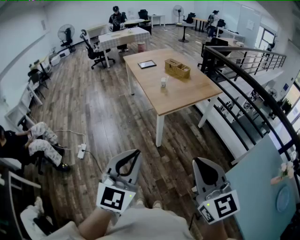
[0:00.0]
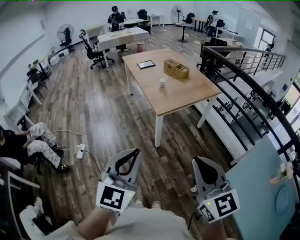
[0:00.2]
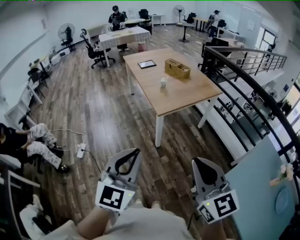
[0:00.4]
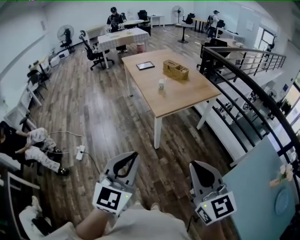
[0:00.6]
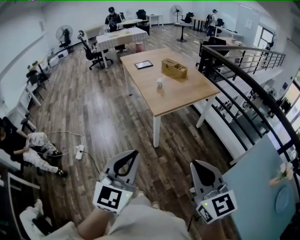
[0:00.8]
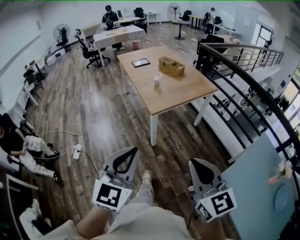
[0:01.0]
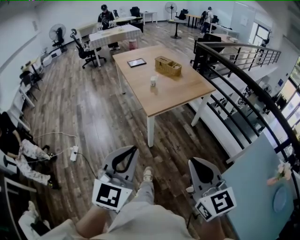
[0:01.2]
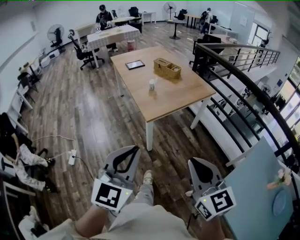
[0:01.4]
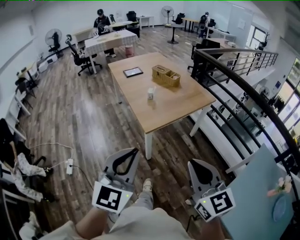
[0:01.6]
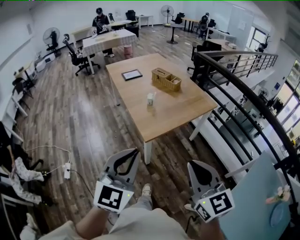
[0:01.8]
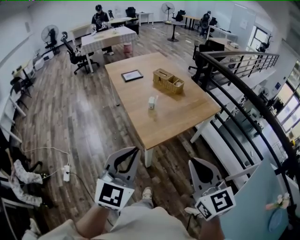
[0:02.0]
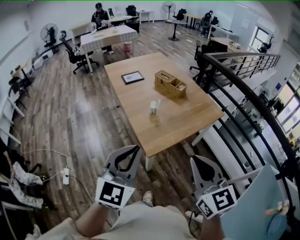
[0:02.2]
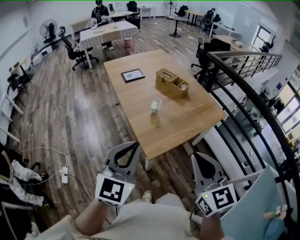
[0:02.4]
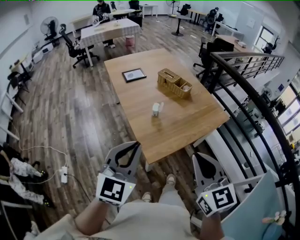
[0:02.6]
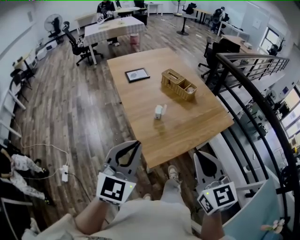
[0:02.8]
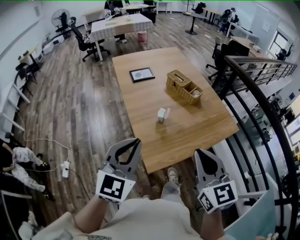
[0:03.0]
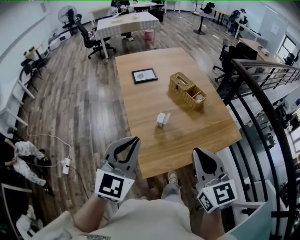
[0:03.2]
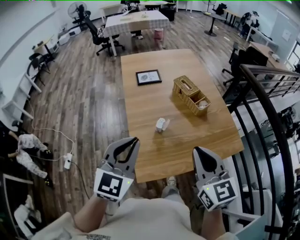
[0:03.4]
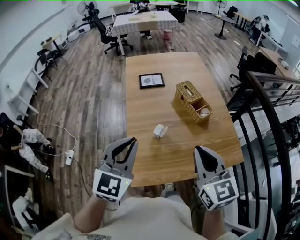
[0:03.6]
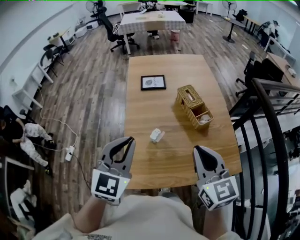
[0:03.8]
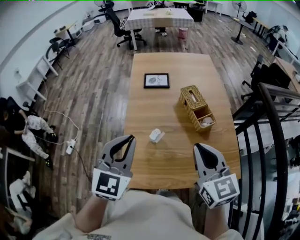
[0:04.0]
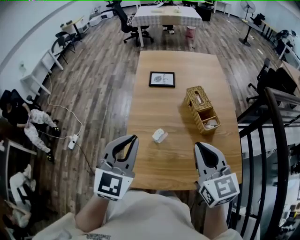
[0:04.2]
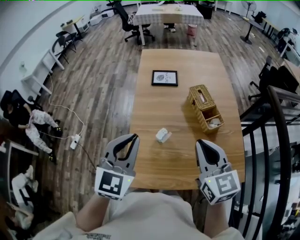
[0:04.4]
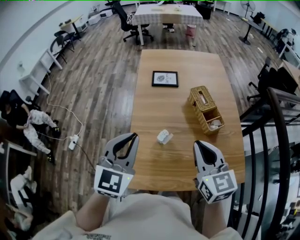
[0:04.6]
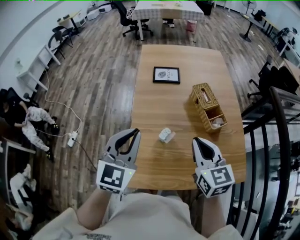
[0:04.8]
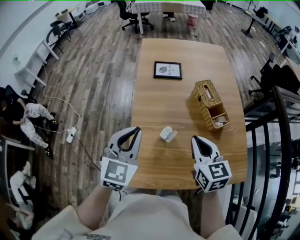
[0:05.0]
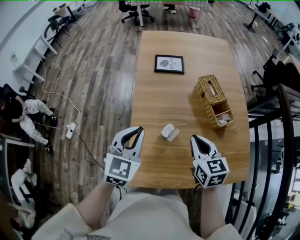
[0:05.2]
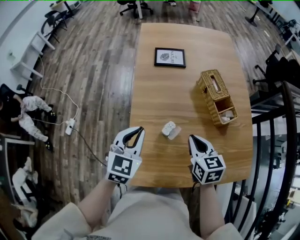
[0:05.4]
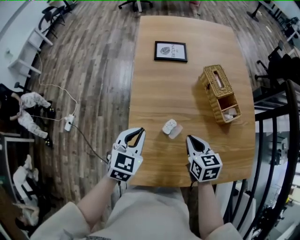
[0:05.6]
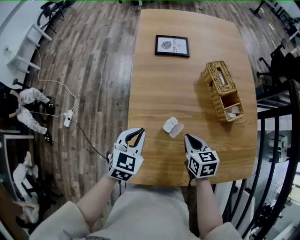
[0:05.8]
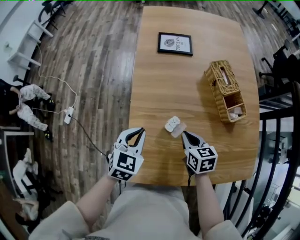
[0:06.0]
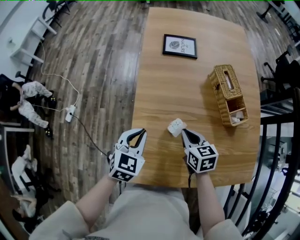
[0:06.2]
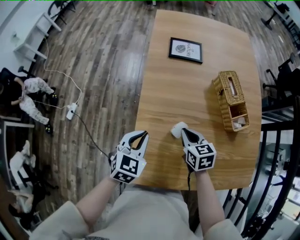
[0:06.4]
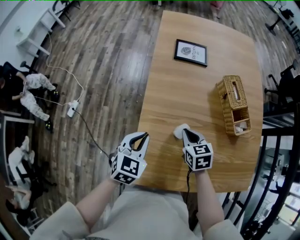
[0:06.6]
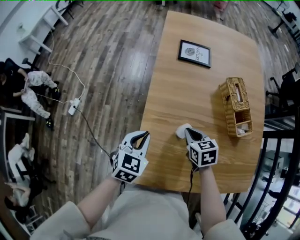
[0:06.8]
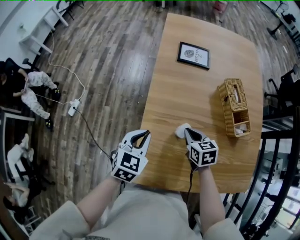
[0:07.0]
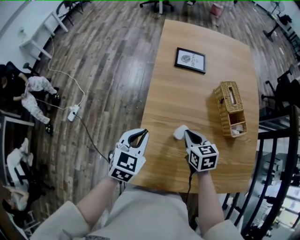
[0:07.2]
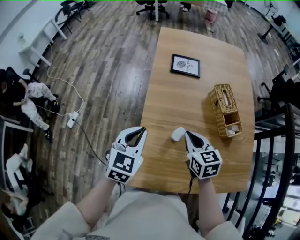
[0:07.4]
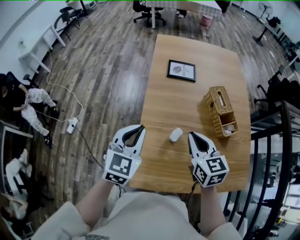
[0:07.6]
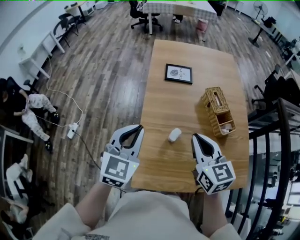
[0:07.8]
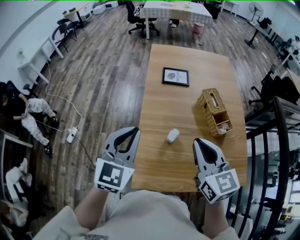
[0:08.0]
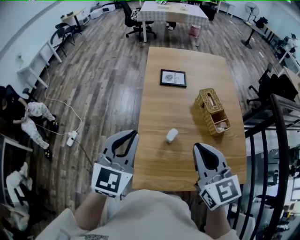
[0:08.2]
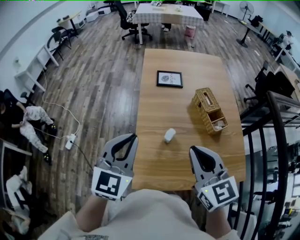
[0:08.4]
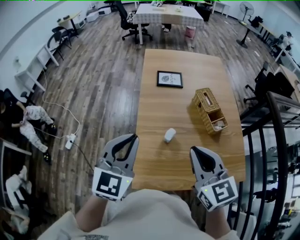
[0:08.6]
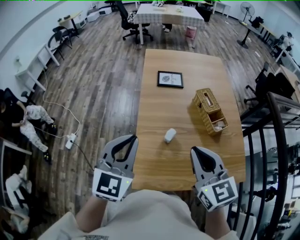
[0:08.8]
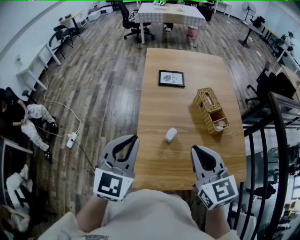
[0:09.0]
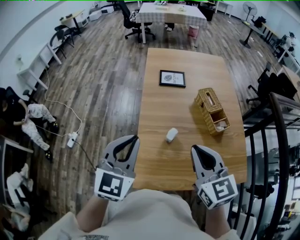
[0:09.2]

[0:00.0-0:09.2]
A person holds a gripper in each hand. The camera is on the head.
0:00.0 to 0:01.6: Both grippers move forward, some 20 cm.
0:01.6 to 0:03.0: Both grippers are carried forward, about 50 cm.
0:03.0 to 0:04.6: The right gripper changes place by approximately 30 cm, and rotates some 20 degrees; the left gripper moves about 25 cm, and swivels approximately 30 degrees.
0:04.6 to 0:06.2: The right gripper heads downward and forward, covering approximately 30 cm, and changes its angle by some 30 degrees. The left gripper moves downward, some 25 cm, and turns by some 30 degrees.
0:06.2 to 0:07.6: The grippers both shift upward by some 15 cm.
0:07.6 to 0:09.2: The grippers both shift upward and backward by about 15 cm.

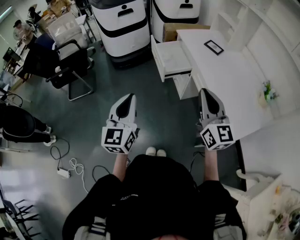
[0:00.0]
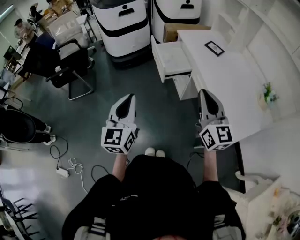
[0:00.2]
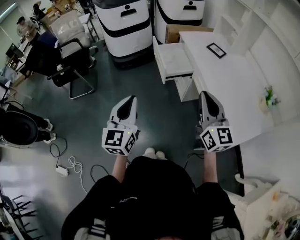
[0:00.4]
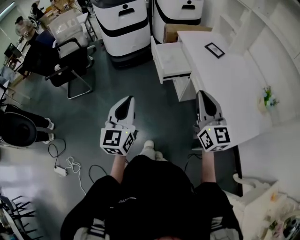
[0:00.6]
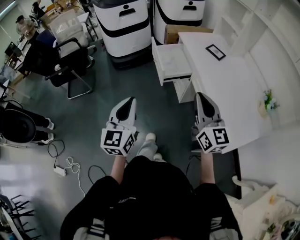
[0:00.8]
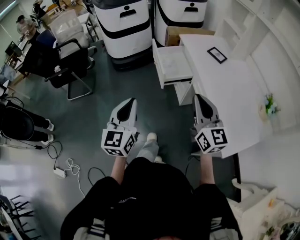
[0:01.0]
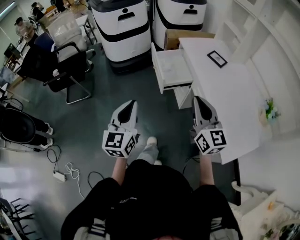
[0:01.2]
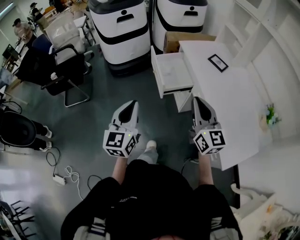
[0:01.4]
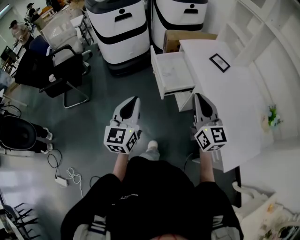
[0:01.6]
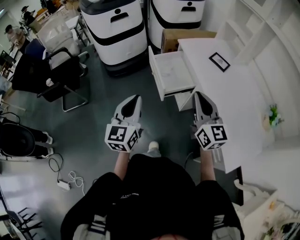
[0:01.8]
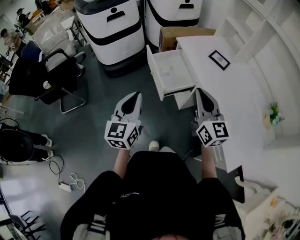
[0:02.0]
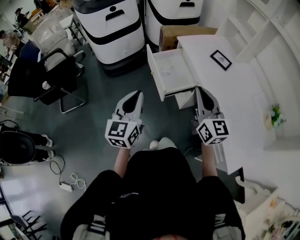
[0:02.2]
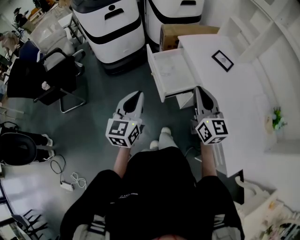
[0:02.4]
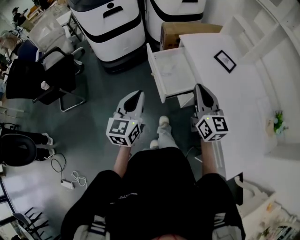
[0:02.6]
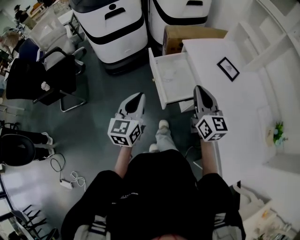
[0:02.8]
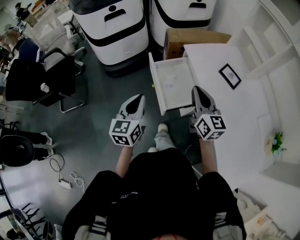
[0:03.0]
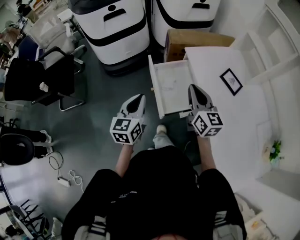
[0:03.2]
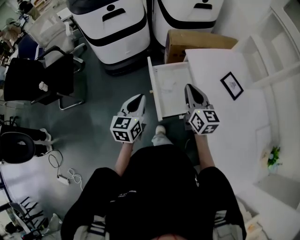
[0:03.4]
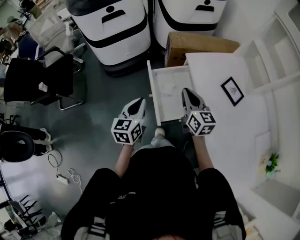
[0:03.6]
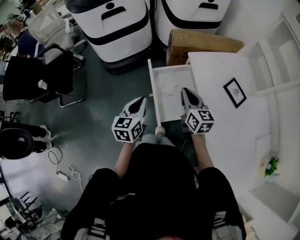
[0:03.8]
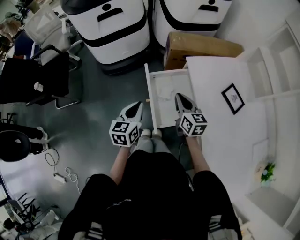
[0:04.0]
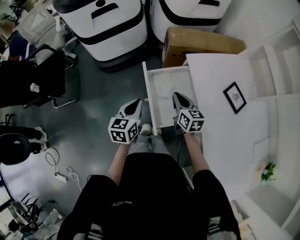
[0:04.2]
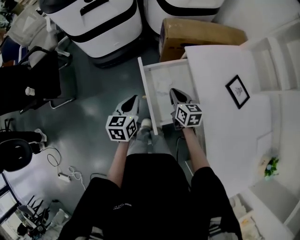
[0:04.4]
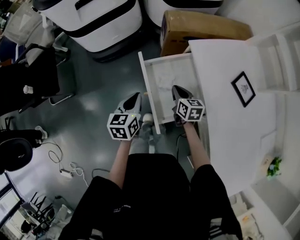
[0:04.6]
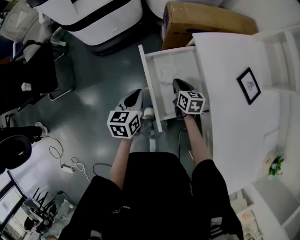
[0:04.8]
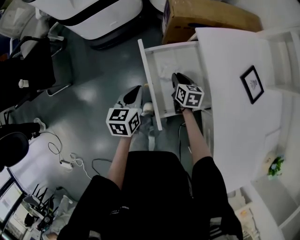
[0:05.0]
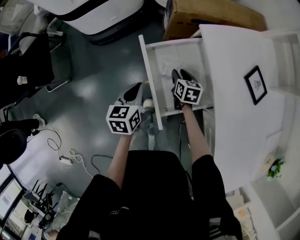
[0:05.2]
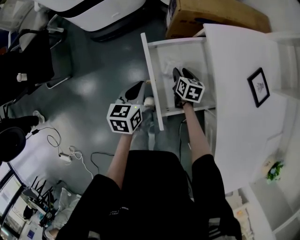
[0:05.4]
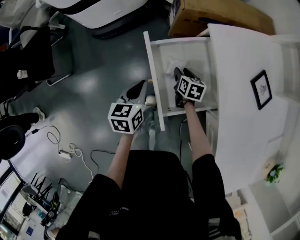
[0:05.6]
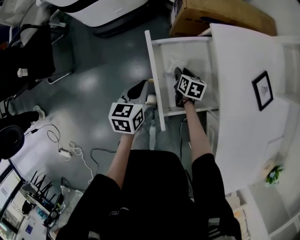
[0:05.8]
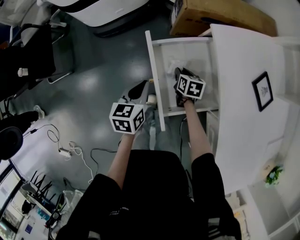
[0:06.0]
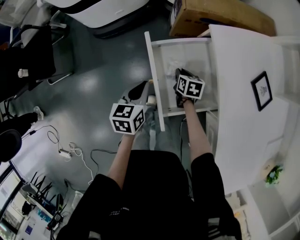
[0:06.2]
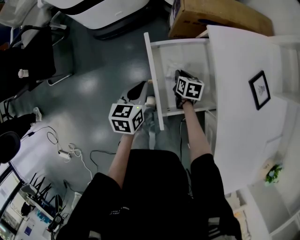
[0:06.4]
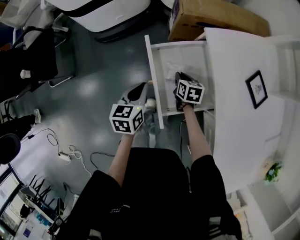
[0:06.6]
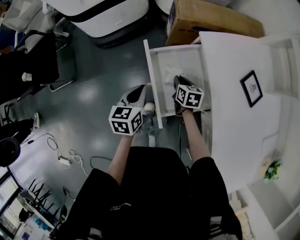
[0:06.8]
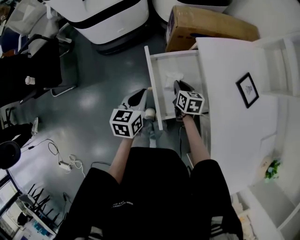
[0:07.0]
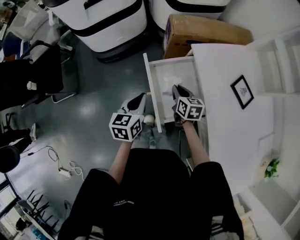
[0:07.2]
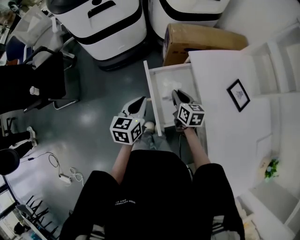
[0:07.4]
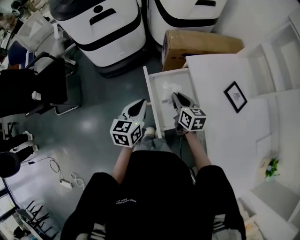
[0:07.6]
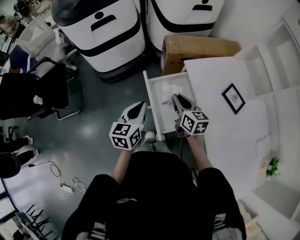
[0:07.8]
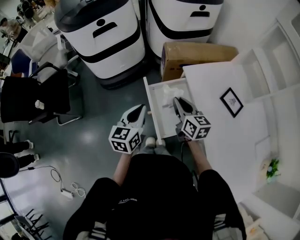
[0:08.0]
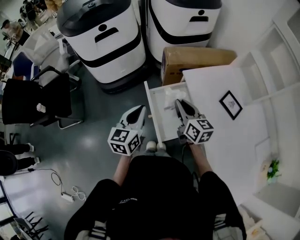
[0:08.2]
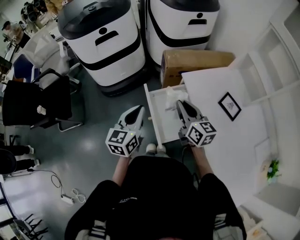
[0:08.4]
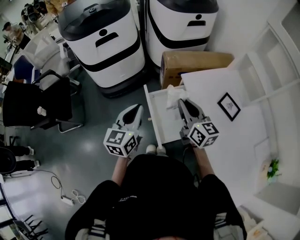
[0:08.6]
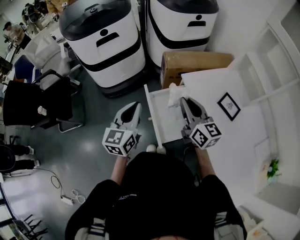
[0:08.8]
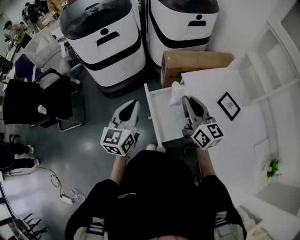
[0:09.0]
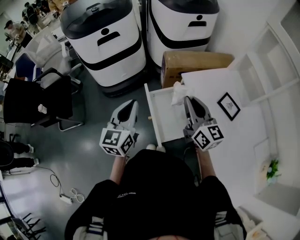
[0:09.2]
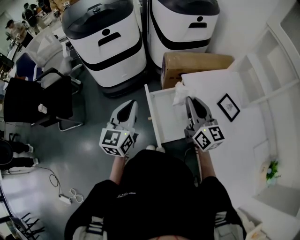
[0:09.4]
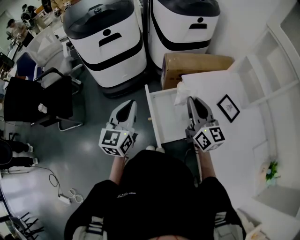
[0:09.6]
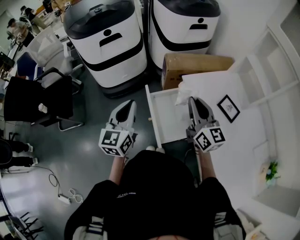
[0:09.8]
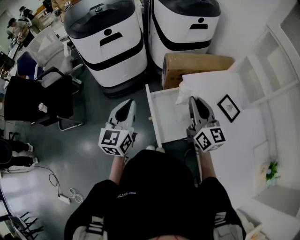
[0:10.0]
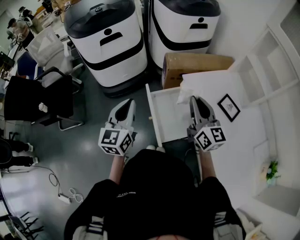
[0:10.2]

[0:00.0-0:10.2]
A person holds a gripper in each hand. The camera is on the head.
0:00.0 to 0:01.4: Both grippers move forward, approximately 15 cm.
0:01.4 to 0:03.0: The grippers both shift forward by approximately 30 cm.
0:03.0 to 0:04.4: The left gripper heads forward and downward, covering some 20 cm, and rotates about 20 degrees; the right gripper travels downward and forward by about 30 cm, and changes its angle by some 30 degrees.
0:04.4 to 0:05.8: The left gripper shifts approximately 10 cm downward. Meanwhile the right gripper is displaced downward by approximately 15 cm, swivels approximately 20 degrees, and opens its fingers.
0:05.8 to 0:07.2: The right gripper travels upward by about 15 cm, and closes up. The left gripper is displaced upward by roughly 10 cm.
0:07.2 to 0:08.8: The left gripper shifts about 20 cm upward, and rotates roughly 20 degrees. Meanwhile the right gripper travels upward by roughly 25 cm, and tips its fingers upward by some 40 degrees.
0:08.8 to 0:10.2: The grippers stay close to where they were, moving slightly.

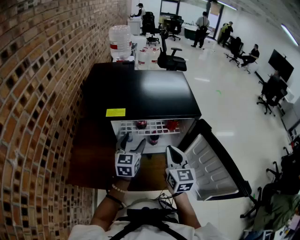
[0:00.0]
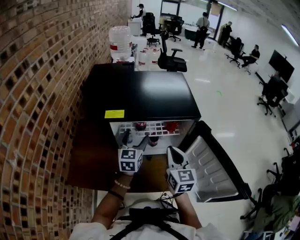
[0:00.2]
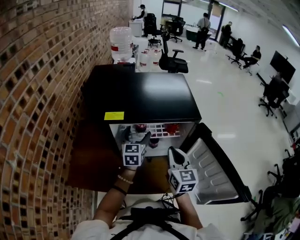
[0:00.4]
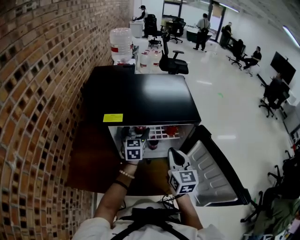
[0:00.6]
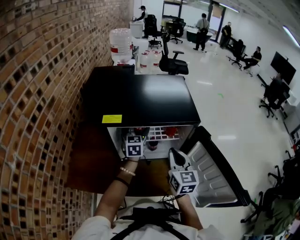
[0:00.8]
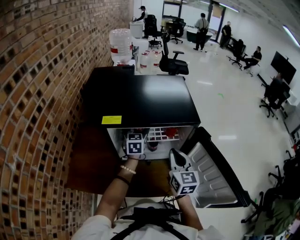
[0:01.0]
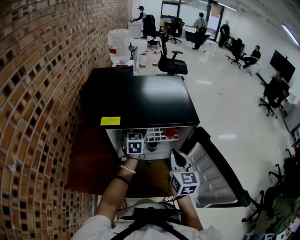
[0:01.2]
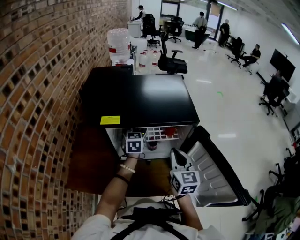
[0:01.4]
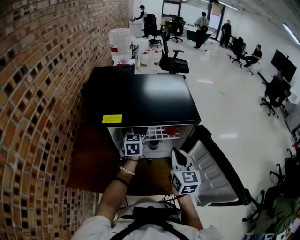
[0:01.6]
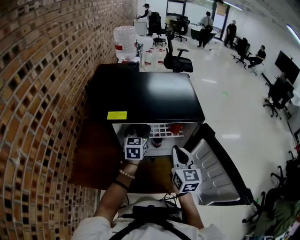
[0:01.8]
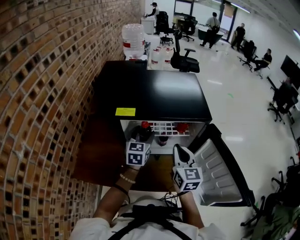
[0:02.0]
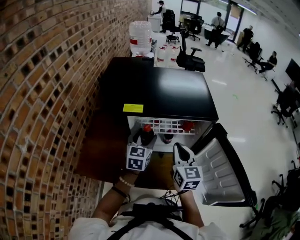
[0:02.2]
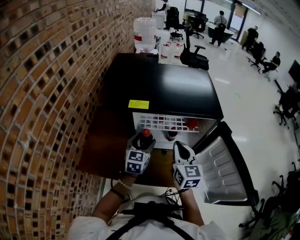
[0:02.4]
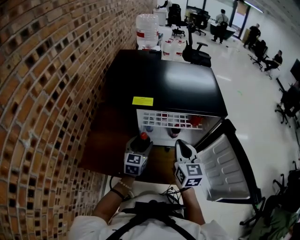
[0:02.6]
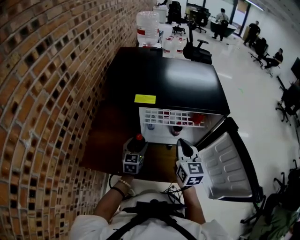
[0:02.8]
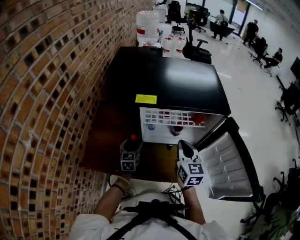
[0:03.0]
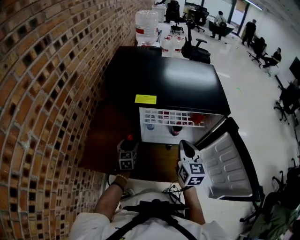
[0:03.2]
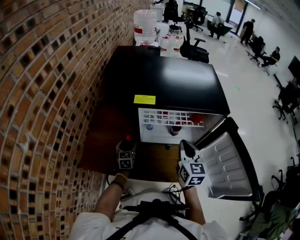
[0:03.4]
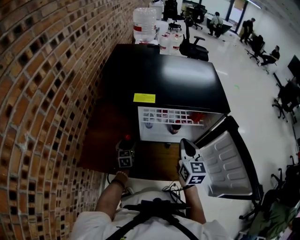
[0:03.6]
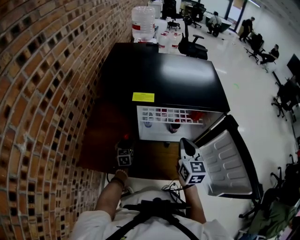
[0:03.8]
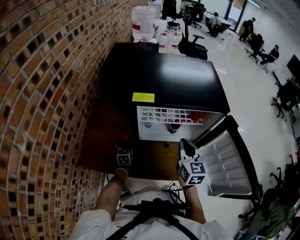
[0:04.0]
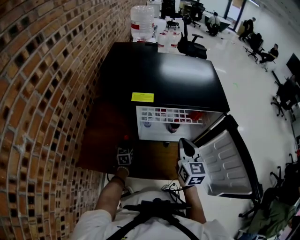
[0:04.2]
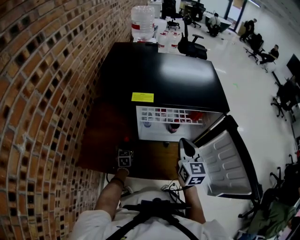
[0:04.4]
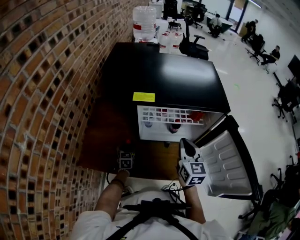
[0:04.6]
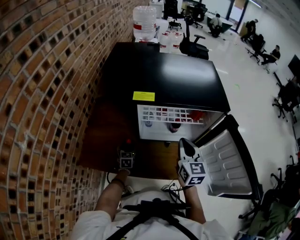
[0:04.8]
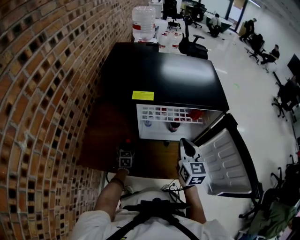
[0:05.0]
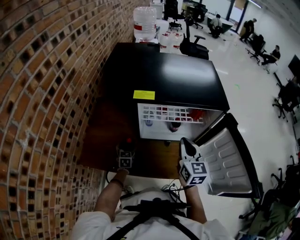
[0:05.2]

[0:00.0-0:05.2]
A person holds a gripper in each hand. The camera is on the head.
0:00.0 to 0:01.8: The left gripper travels forward by roughly 10 cm.
0:01.8 to 0:03.4: The right gripper shifts roughly 5 cm to the left; the left gripper shifts roughly 30 cm downward and to the left.
0:03.4 to 0:05.2: The left gripper changes place by about 5 cm.
